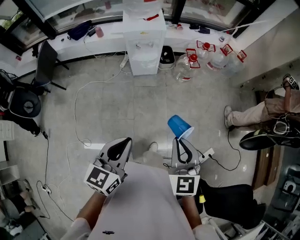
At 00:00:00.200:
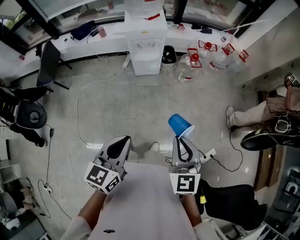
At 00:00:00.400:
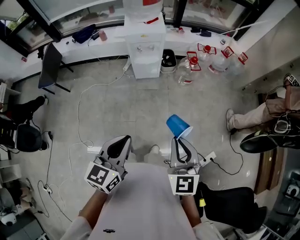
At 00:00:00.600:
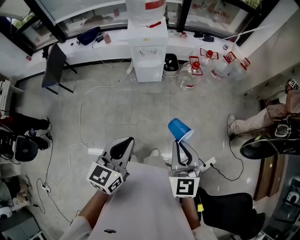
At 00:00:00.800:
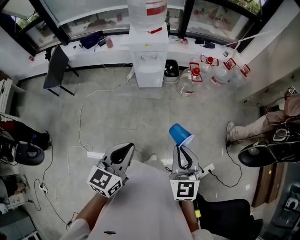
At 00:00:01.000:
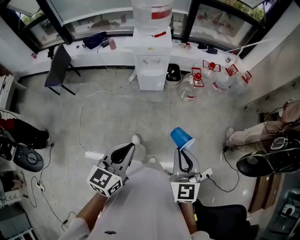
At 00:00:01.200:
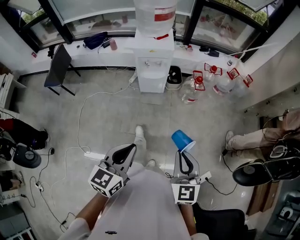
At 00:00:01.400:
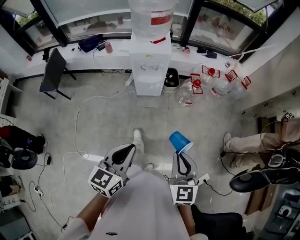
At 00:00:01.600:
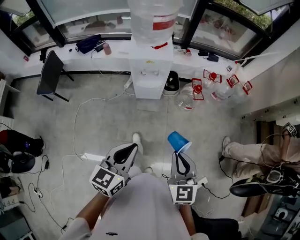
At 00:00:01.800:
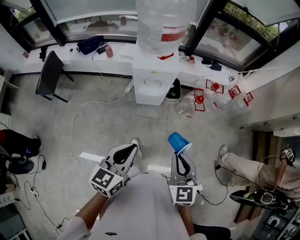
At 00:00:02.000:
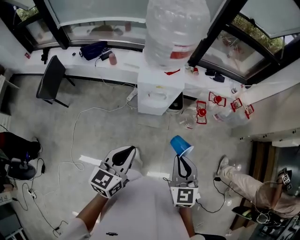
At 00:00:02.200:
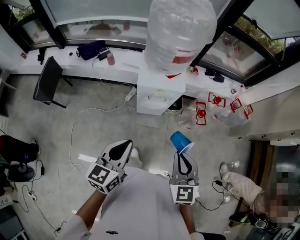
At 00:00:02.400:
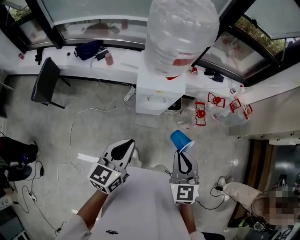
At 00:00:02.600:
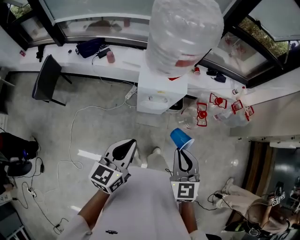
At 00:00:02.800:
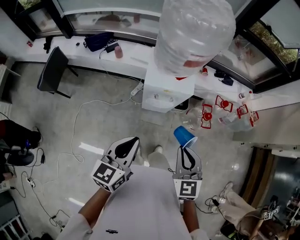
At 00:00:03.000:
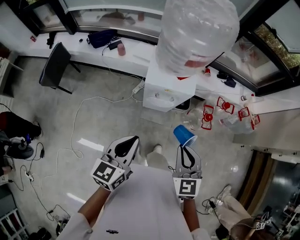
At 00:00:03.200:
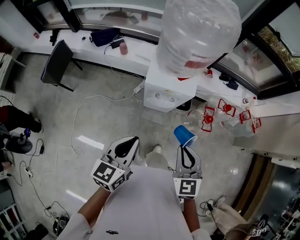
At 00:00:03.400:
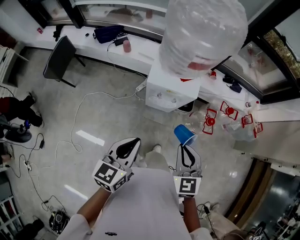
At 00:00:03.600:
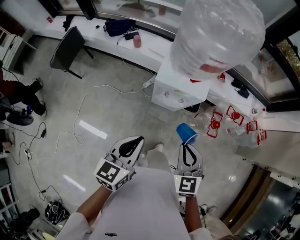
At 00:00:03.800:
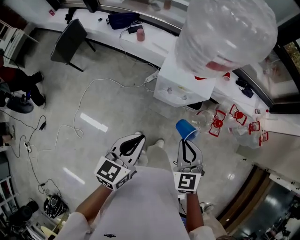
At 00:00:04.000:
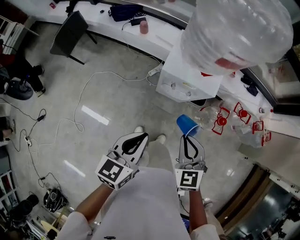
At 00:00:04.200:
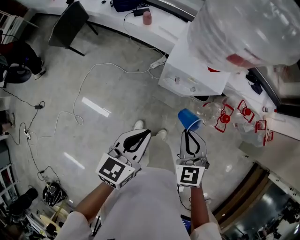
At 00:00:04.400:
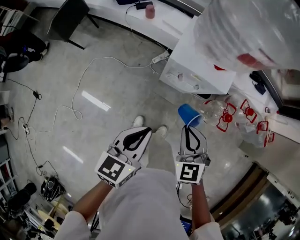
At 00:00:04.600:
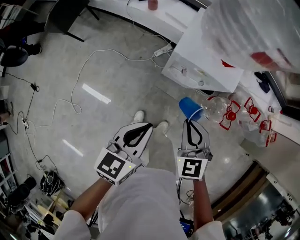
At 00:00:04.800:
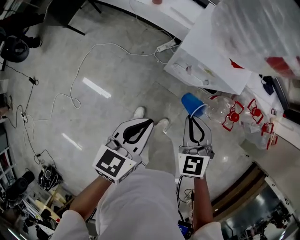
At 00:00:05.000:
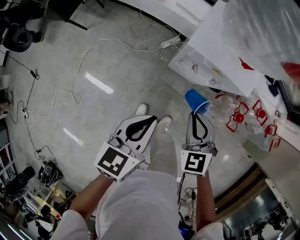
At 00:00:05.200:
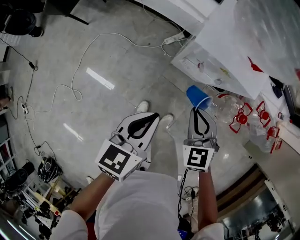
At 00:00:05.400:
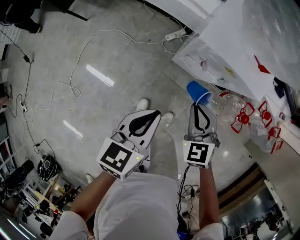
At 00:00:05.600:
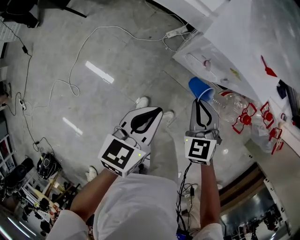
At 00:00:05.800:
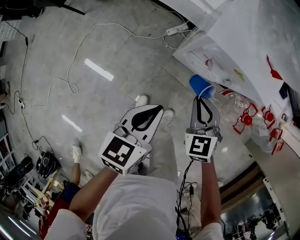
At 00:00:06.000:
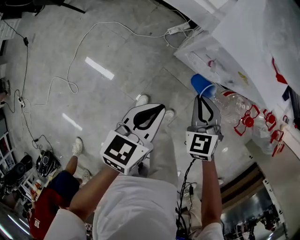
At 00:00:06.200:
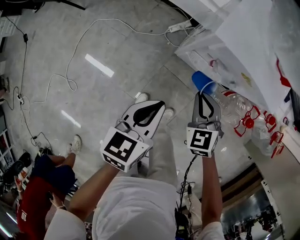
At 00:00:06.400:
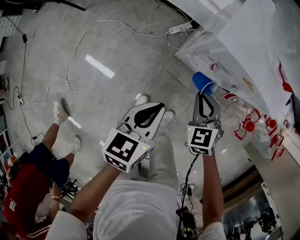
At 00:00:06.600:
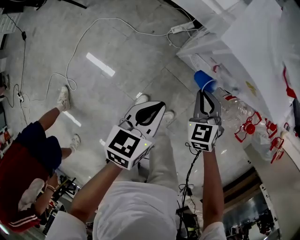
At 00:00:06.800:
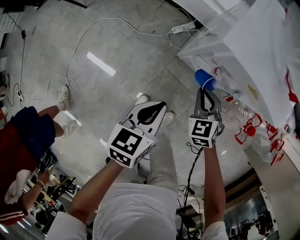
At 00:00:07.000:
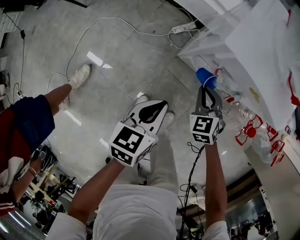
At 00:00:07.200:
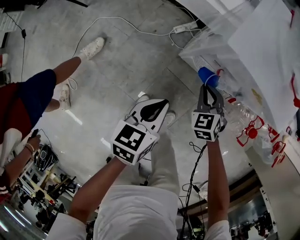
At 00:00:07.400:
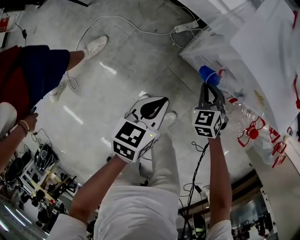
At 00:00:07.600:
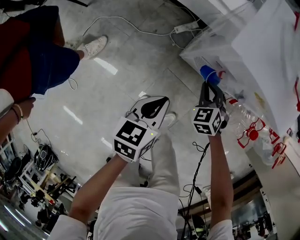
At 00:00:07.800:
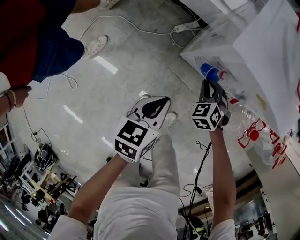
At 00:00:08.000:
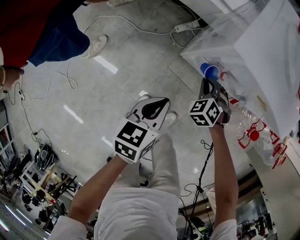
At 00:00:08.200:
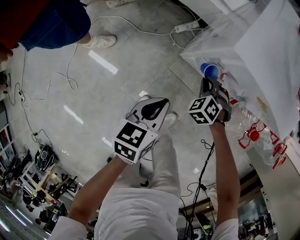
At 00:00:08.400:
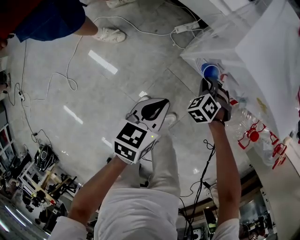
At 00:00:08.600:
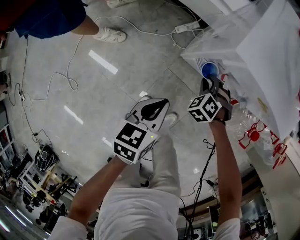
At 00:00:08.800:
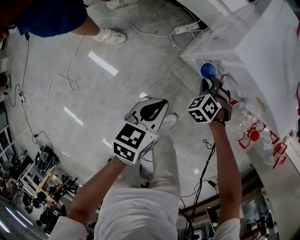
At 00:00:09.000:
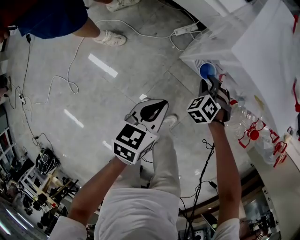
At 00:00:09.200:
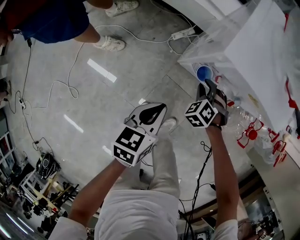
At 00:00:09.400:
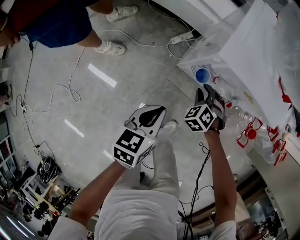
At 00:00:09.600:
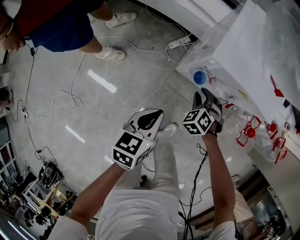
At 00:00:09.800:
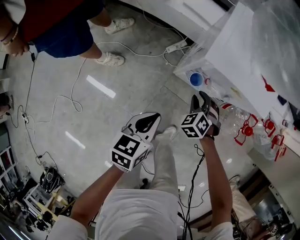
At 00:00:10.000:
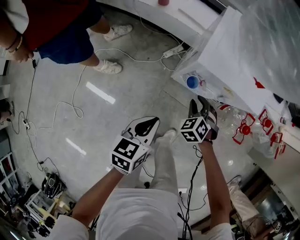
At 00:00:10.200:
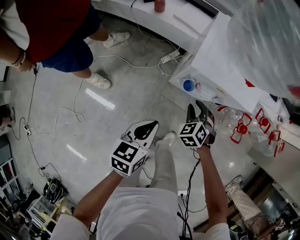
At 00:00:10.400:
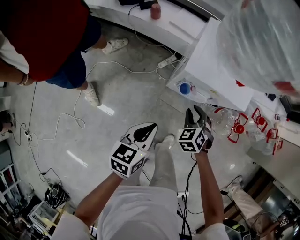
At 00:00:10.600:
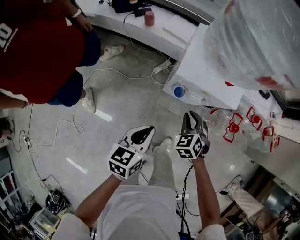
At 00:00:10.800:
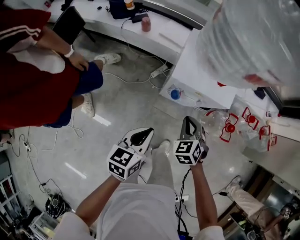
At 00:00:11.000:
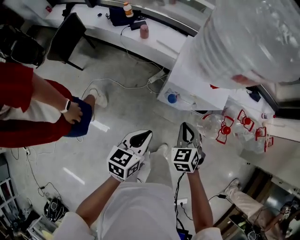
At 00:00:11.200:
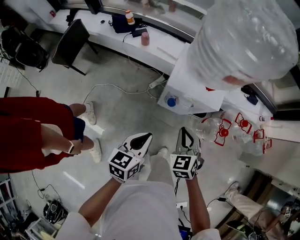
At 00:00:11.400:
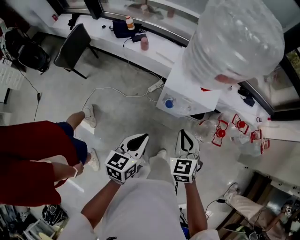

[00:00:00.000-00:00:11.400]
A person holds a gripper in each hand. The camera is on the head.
00:00:00.000 to 00:00:01.400: The two grippers go some 5 cm forward.
00:00:01.400 to 00:00:02.800: The left gripper goes approximately 30 cm forward and to the left; the right gripper heads forward, covering roughly 30 cm.
00:00:02.800 to 00:00:04.200: The right gripper travels downward and forward by some 15 cm, and turns by approximately 20 degrees. Meanwhile the left gripper is displaced downward by roughly 10 cm.
00:00:04.200 to 00:00:05.600: The left gripper is displaced downward by roughly 15 cm, while the right gripper heads downward and forward, covering roughly 20 cm.
00:00:05.600 to 00:00:07.200: The left gripper heads downward, covering roughly 15 cm; the right gripper is displaced downward and forward by about 20 cm.
00:00:07.200 to 00:00:08.600: The right gripper travels downward by about 10 cm, and swivels approximately 30 degrees.
00:00:08.600 to 00:00:10.000: The two grippers go about 10 cm upward.
00:00:10.000 to 00:00:11.400: The right gripper travels upward by roughly 30 cm, turns by roughly 30 degrees, and closes. The left gripper goes approximately 20 cm upward.

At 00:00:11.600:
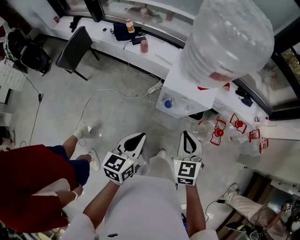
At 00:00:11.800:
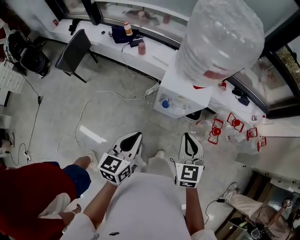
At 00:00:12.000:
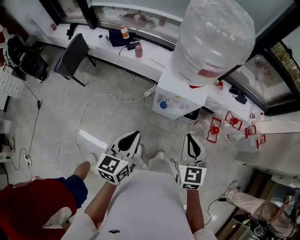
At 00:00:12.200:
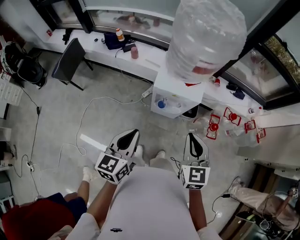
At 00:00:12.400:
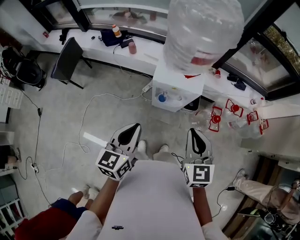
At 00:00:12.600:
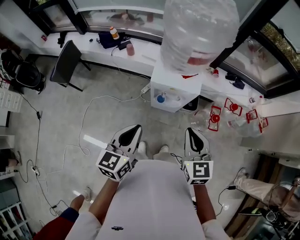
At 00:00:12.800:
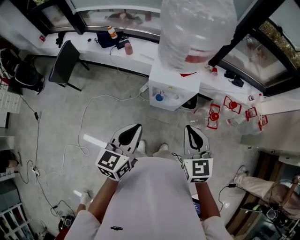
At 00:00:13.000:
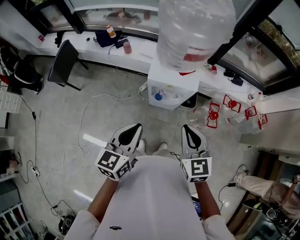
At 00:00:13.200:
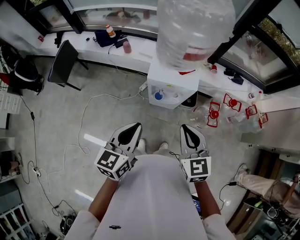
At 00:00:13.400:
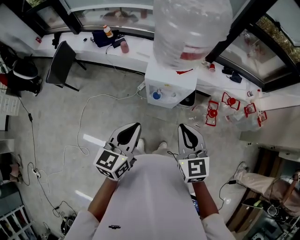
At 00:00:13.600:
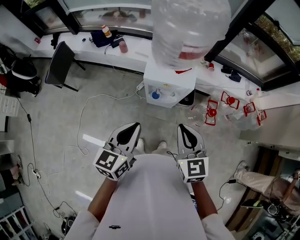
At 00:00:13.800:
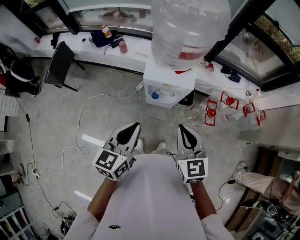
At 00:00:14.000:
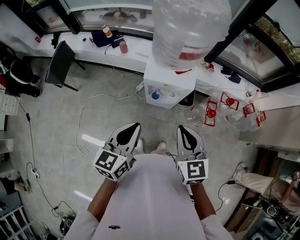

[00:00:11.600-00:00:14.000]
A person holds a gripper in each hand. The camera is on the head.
00:00:11.600 to 00:00:12.800: The left gripper travels upward by about 10 cm, while the right gripper goes about 10 cm upward and to the right.
00:00:12.800 to 00:00:14.000: There are only small adjustments of the grippers.

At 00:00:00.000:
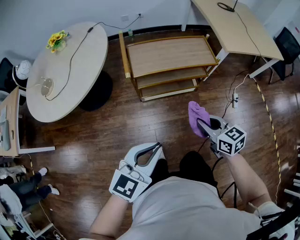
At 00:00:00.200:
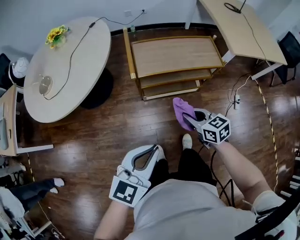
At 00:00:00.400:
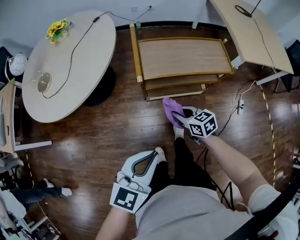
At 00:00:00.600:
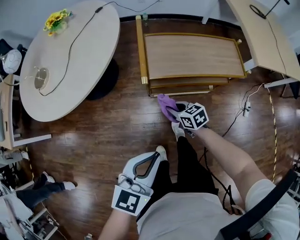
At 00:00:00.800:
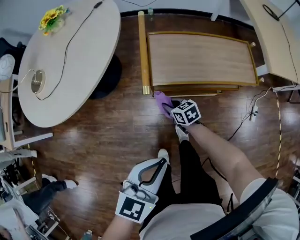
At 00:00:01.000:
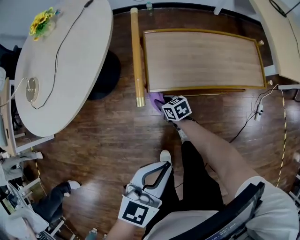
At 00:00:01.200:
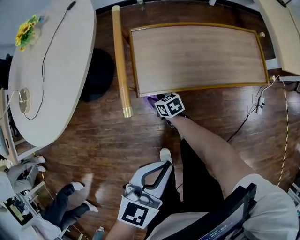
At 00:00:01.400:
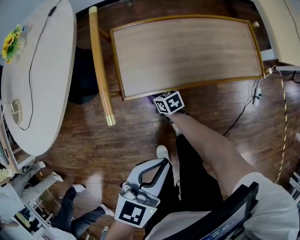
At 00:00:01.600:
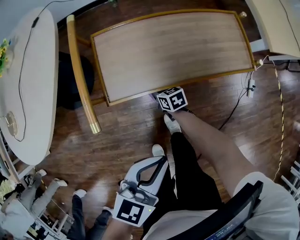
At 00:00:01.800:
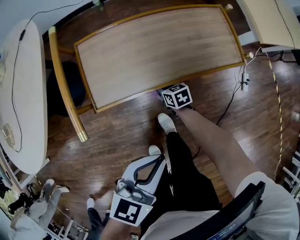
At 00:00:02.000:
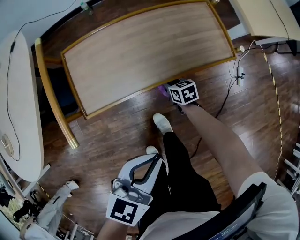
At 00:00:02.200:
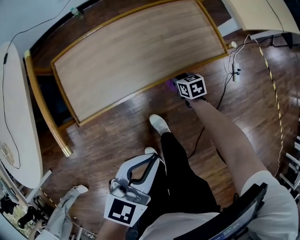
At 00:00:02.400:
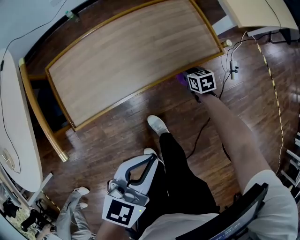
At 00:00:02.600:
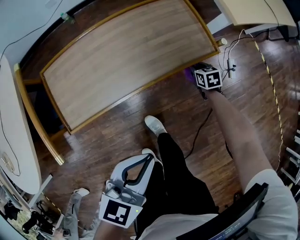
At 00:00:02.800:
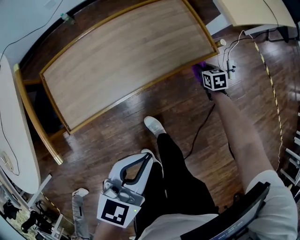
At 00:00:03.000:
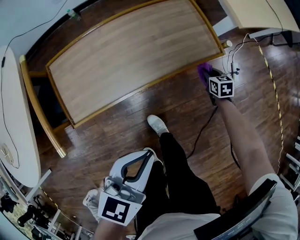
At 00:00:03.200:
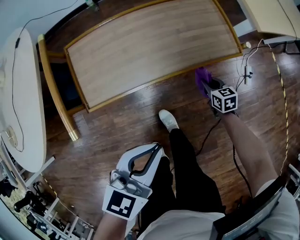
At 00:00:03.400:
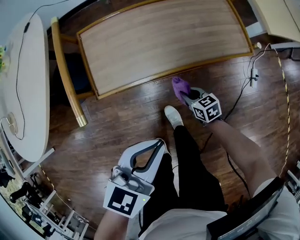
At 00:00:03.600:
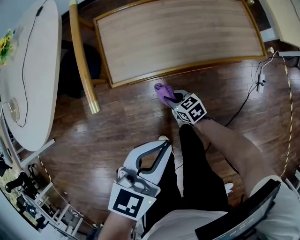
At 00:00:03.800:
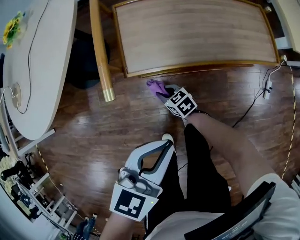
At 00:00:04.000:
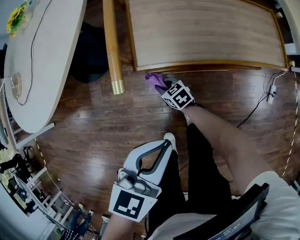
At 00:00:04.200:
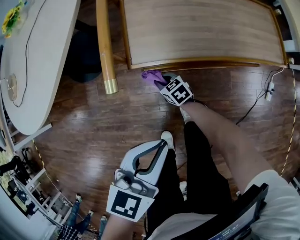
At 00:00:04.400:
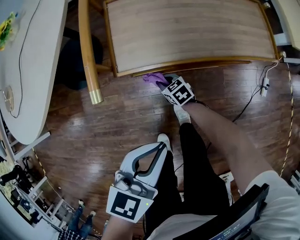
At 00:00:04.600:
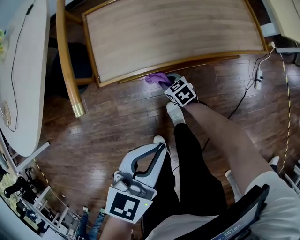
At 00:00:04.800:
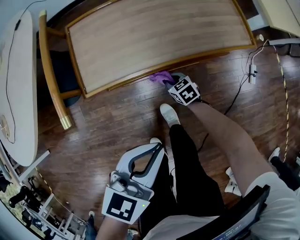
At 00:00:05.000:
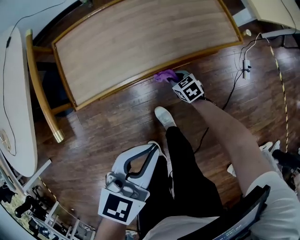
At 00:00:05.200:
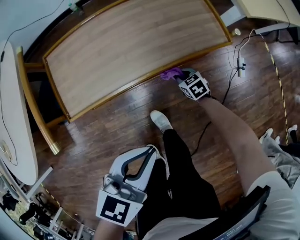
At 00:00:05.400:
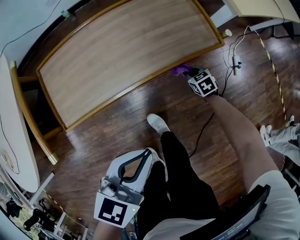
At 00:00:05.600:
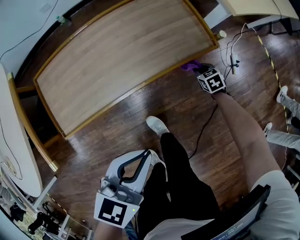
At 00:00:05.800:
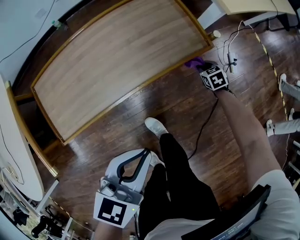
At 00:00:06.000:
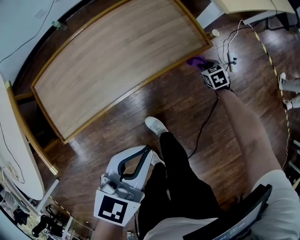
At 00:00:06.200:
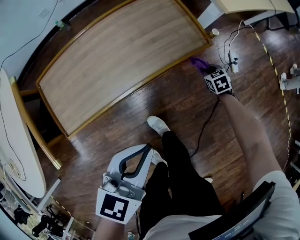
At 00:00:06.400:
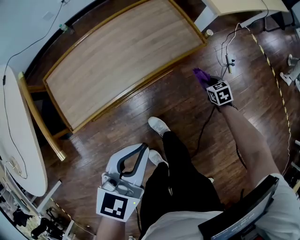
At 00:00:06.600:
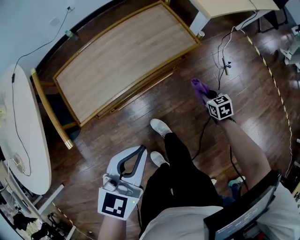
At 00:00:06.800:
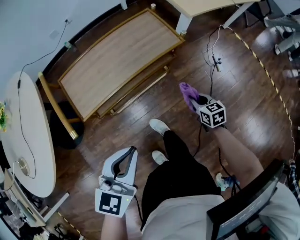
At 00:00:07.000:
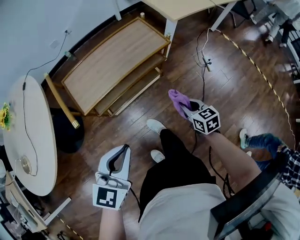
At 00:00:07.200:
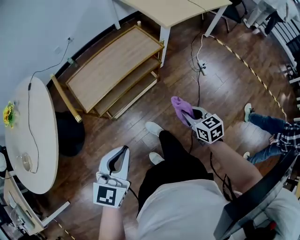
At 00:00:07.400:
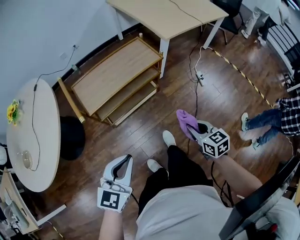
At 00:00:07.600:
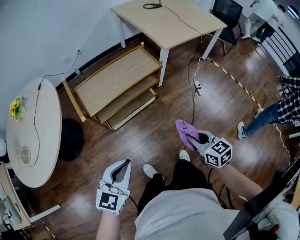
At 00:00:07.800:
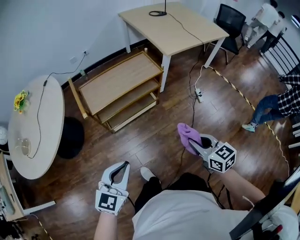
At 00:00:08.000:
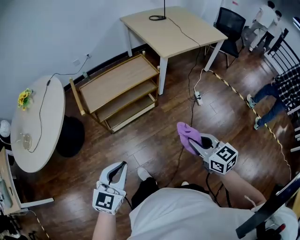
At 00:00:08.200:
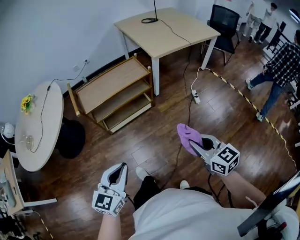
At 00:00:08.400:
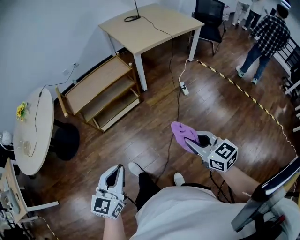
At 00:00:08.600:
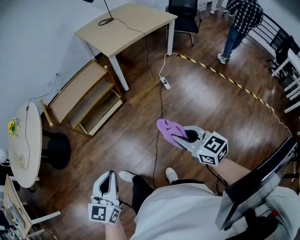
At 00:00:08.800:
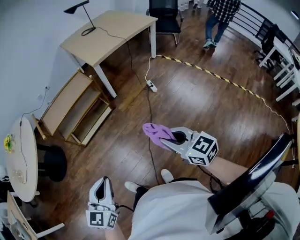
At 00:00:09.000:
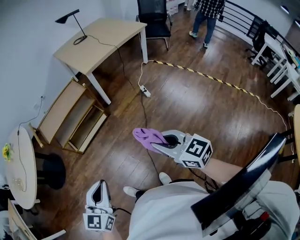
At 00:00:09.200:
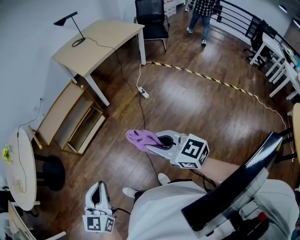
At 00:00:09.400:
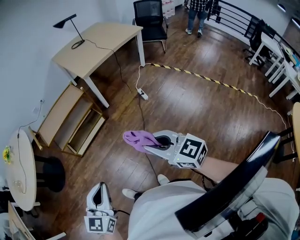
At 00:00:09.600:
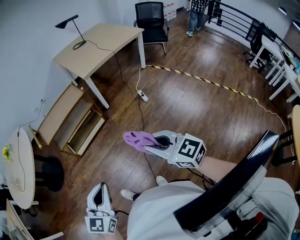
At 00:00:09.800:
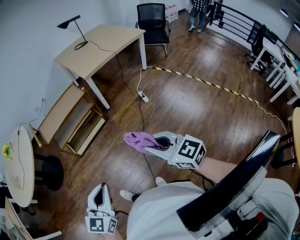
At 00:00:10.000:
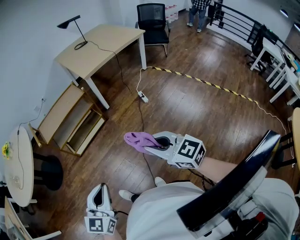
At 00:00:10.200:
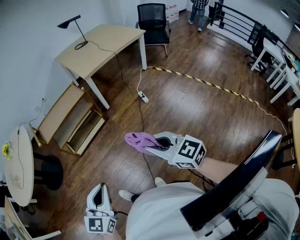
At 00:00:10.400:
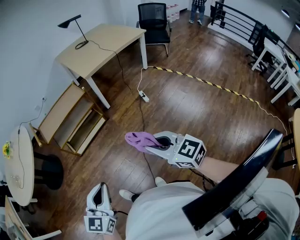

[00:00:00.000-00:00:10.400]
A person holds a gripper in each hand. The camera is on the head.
00:00:00.000 to 00:00:01.400: The right gripper goes some 60 cm downward, forward and to the left, and swivels some 30 degrees; the left gripper is displaced forward and downward by some 30 cm.
00:00:01.400 to 00:00:03.000: The left gripper shifts by about 15 cm, while the right gripper moves approximately 50 cm, and changes its angle by roughly 40 degrees.
00:00:03.000 to 00:00:04.400: The left gripper moves about 15 cm. The right gripper ends up roughly 50 cm from where it was, and turns by roughly 50 degrees.
00:00:04.400 to 00:00:06.000: The left gripper shifts by about 20 cm, and rotates about 20 degrees. Meanwhile the right gripper changes place by about 50 cm, and turns by approximately 40 degrees.
00:00:06.000 to 00:00:07.400: The left gripper moves backward and upward, approximately 30 cm. The right gripper goes approximately 60 cm backward and upward, and swivels about 30 degrees.
00:00:07.400 to 00:00:09.000: The left gripper is displaced to the right and backward by approximately 35 cm. Meanwhile the right gripper travels backward, to the right and upward by roughly 40 cm, and rotates approximately 20 degrees.
00:00:09.000 to 00:00:10.400: The left gripper moves roughly 5 cm.
